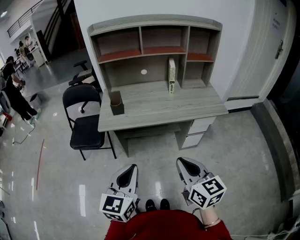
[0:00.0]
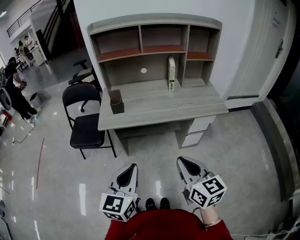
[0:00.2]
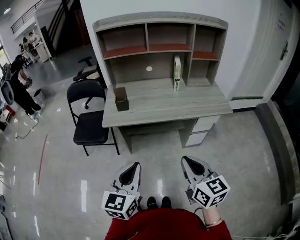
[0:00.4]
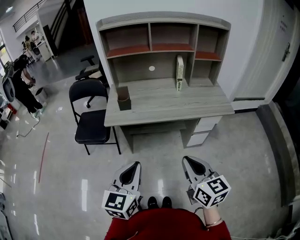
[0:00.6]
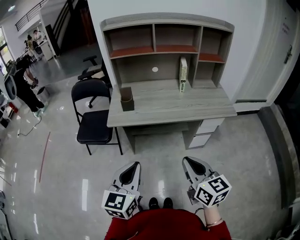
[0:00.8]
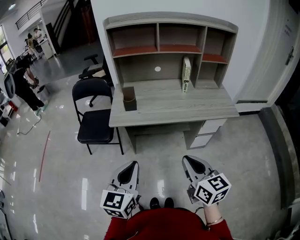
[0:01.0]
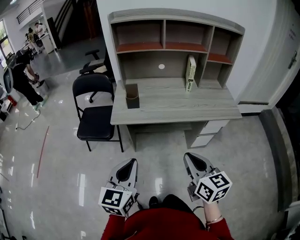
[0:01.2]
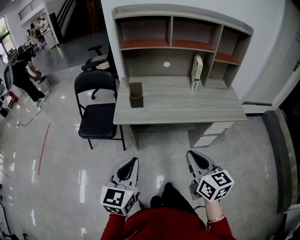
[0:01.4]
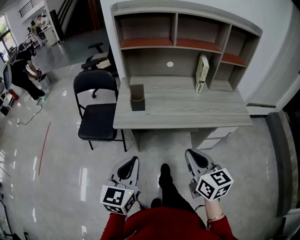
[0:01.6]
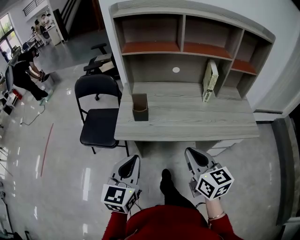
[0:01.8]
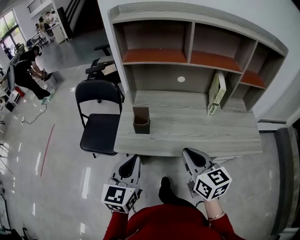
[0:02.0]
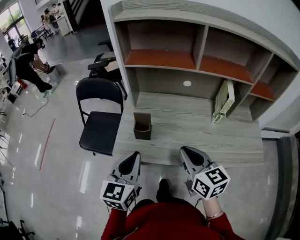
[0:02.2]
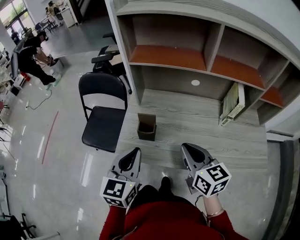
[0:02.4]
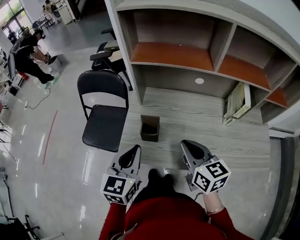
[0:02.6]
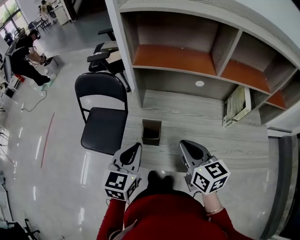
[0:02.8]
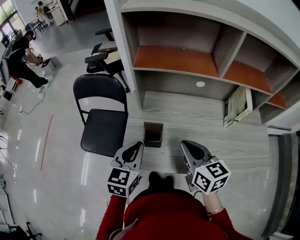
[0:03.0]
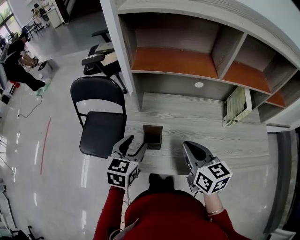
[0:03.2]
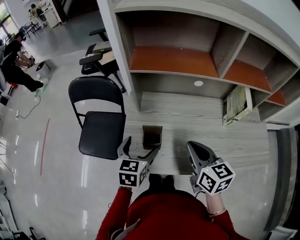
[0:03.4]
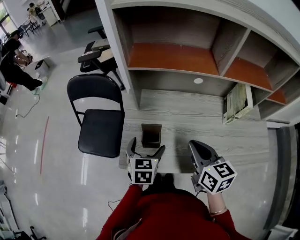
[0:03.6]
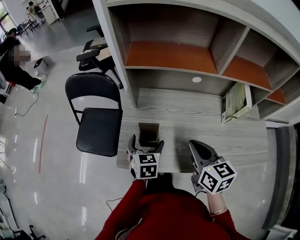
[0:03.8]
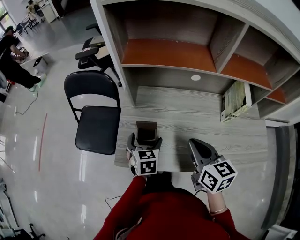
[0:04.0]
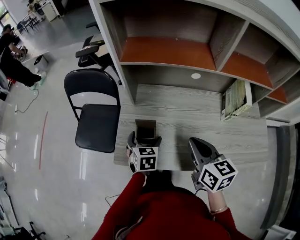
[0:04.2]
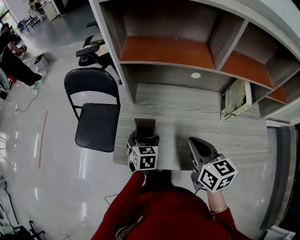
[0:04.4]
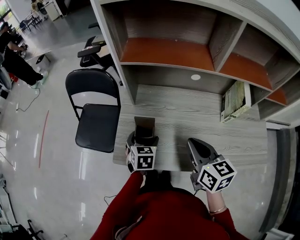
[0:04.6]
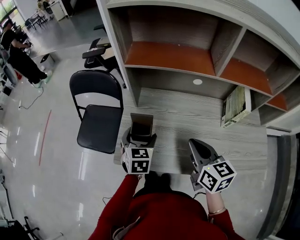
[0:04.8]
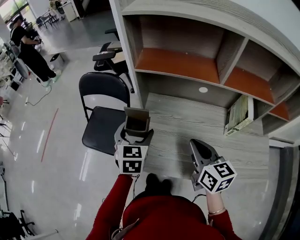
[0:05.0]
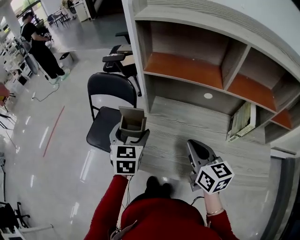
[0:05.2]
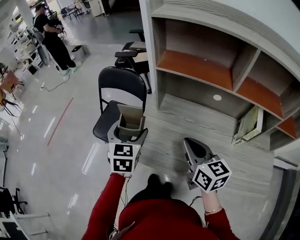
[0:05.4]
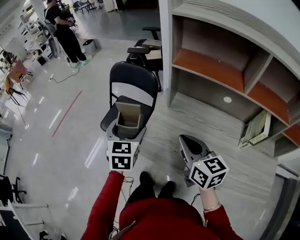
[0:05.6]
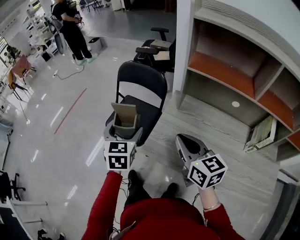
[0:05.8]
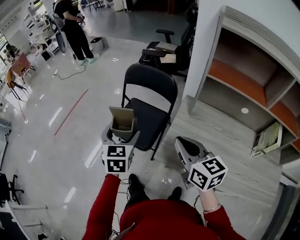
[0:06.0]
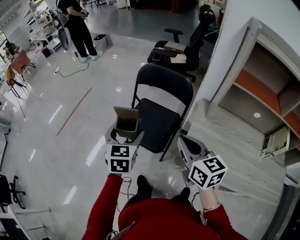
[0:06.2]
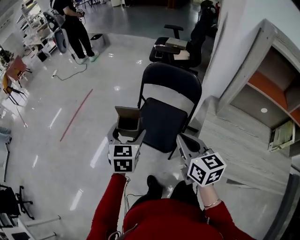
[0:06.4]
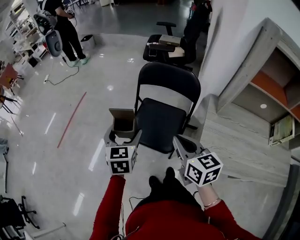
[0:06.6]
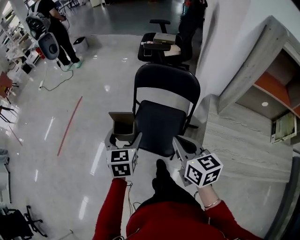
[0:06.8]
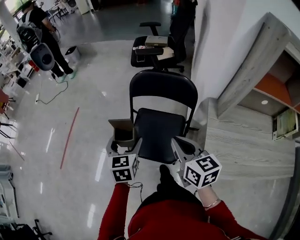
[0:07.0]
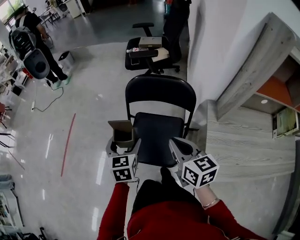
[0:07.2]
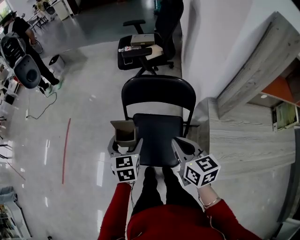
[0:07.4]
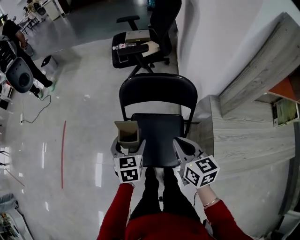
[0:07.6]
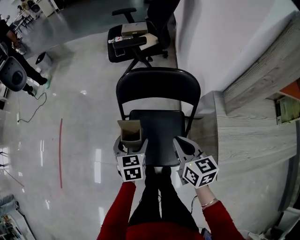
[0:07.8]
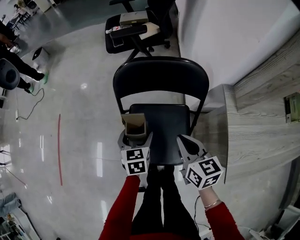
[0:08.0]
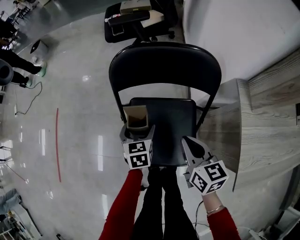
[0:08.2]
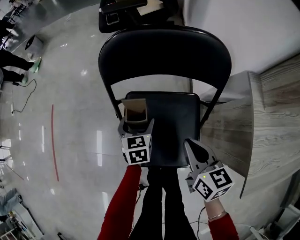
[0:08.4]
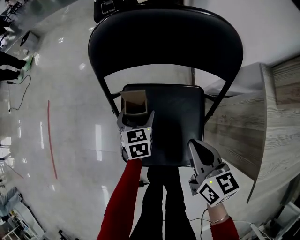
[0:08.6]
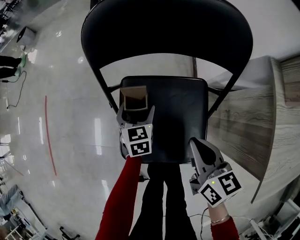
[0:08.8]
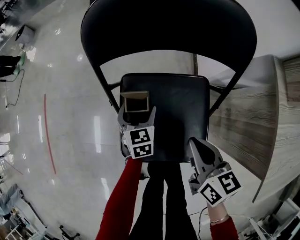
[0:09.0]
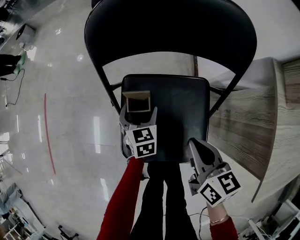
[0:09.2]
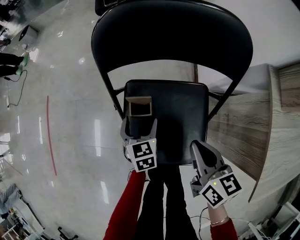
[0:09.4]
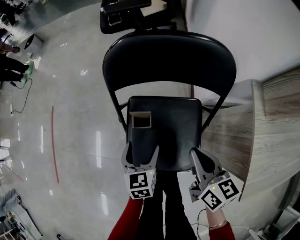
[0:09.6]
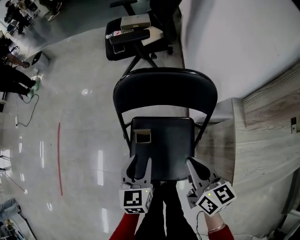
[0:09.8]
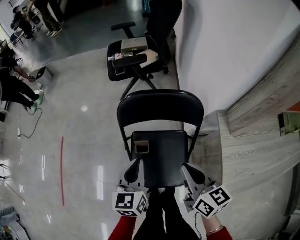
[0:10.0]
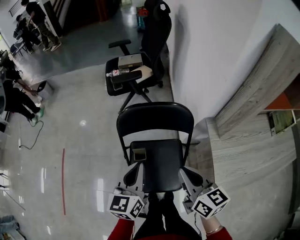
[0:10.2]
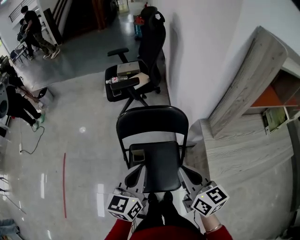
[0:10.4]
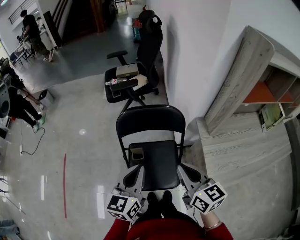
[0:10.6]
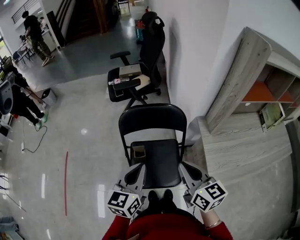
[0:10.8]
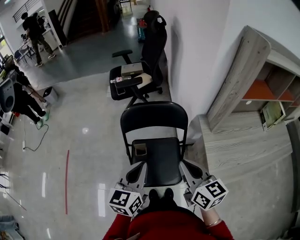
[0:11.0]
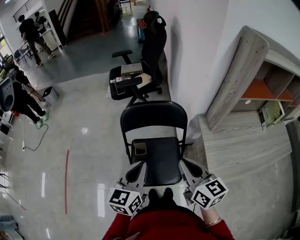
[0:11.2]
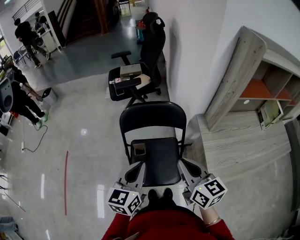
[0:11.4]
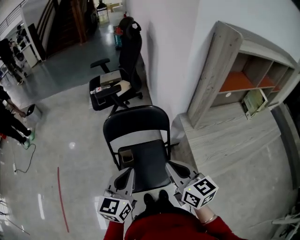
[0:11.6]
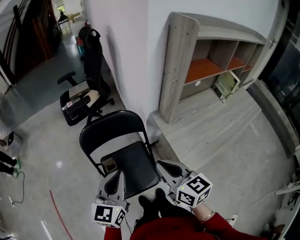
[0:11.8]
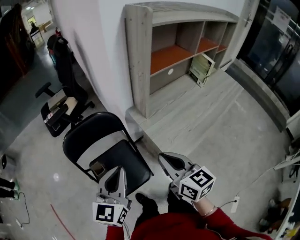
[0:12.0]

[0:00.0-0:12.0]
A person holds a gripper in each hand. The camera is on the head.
0:00.0 to 0:01.6: The two grippers go roughly 15 cm forward and to the left.
0:01.6 to 0:03.0: Both grippers travel together forward, roughly 30 cm.
0:03.0 to 0:04.4: The right gripper ends up approximately 5 cm from where it was; the left gripper goes some 15 cm downward, turns by about 20 degrees, and opens its fingers.
0:04.4 to 0:06.0: The right gripper ends up roughly 25 cm from where it was, and turns by about 30 degrees. Meanwhile the left gripper shifts by approximately 35 cm, and swivels approximately 30 degrees.
0:06.0 to 0:07.6: The left gripper shifts roughly 30 cm forward, downward and to the left, and changes its angle by approximately 20 degrees, while the right gripper heads forward, to the left and downward, covering approximately 30 cm, and swivels roughly 30 degrees.
0:07.6 to 0:09.0: Both grippers move downward, about 25 cm.
0:09.0 to 0:10.4: The two grippers go approximately 35 cm upward. The right gripper turns by approximately 20 degrees; the left gripper turns by some 40 degrees, and closes up.
0:10.4 to 0:12.0: The left gripper moves to the right, roughly 10 cm, and swivels roughly 30 degrees. Meanwhile the right gripper travels to the right and backward by about 15 cm, and turns by some 20 degrees.

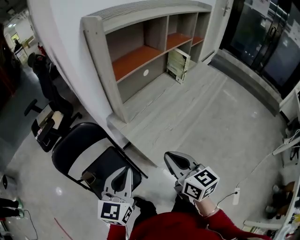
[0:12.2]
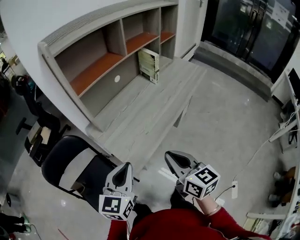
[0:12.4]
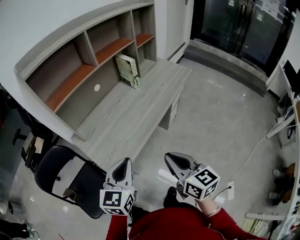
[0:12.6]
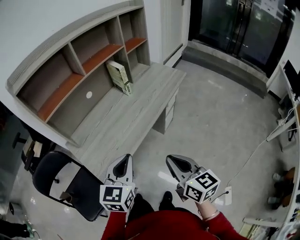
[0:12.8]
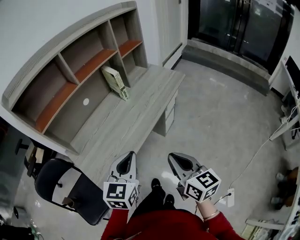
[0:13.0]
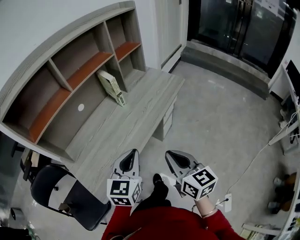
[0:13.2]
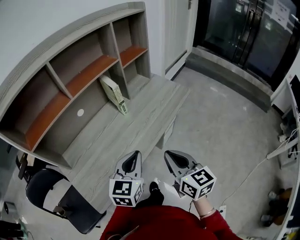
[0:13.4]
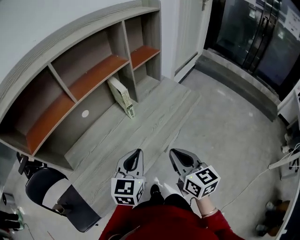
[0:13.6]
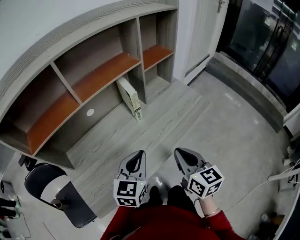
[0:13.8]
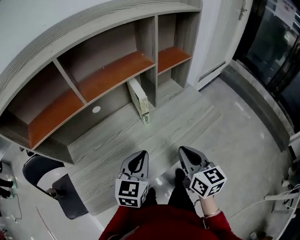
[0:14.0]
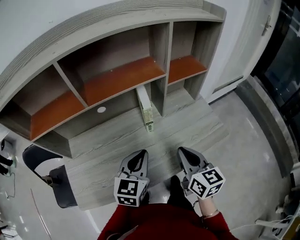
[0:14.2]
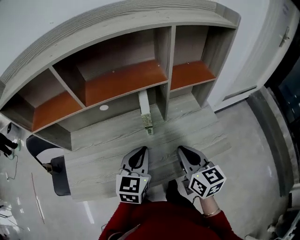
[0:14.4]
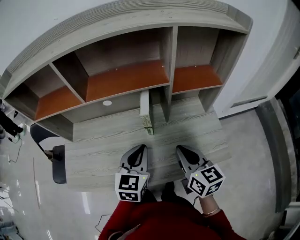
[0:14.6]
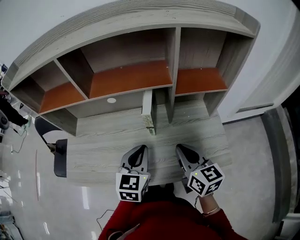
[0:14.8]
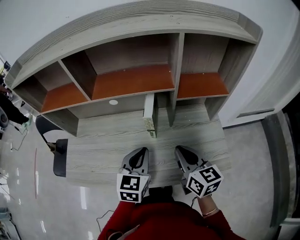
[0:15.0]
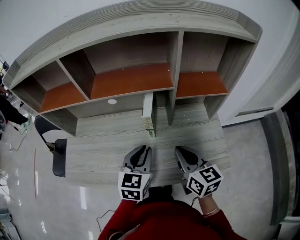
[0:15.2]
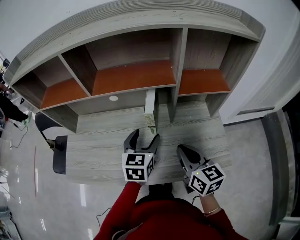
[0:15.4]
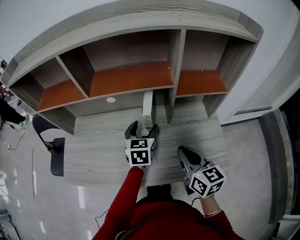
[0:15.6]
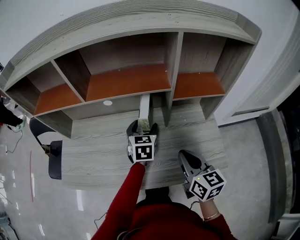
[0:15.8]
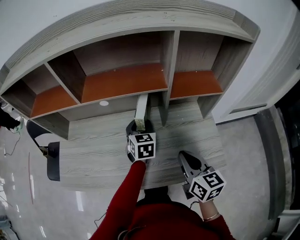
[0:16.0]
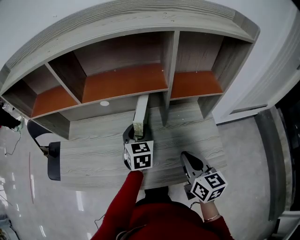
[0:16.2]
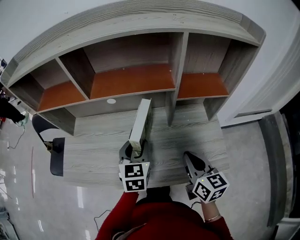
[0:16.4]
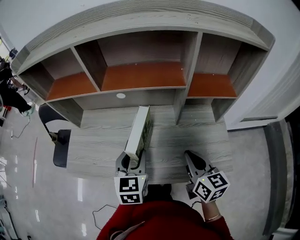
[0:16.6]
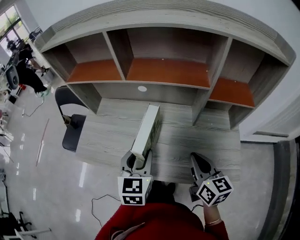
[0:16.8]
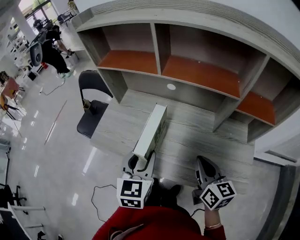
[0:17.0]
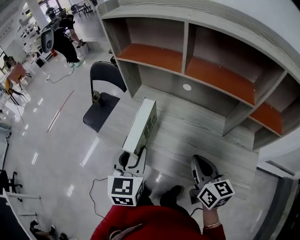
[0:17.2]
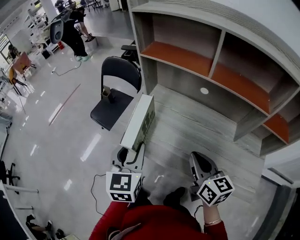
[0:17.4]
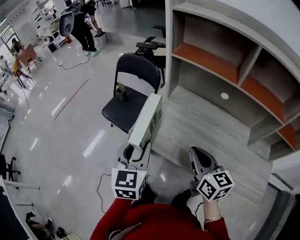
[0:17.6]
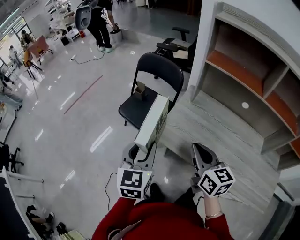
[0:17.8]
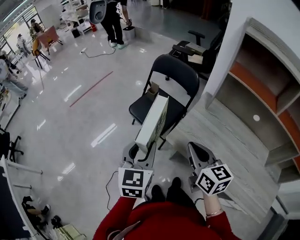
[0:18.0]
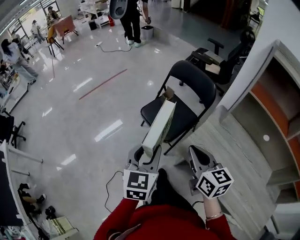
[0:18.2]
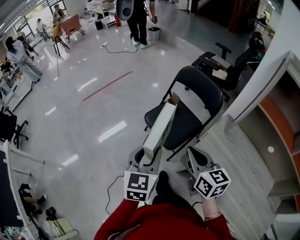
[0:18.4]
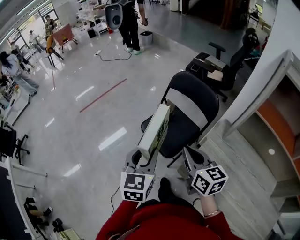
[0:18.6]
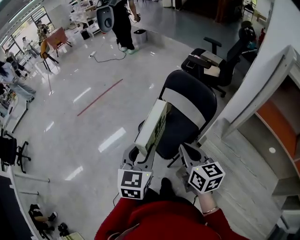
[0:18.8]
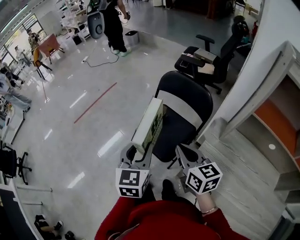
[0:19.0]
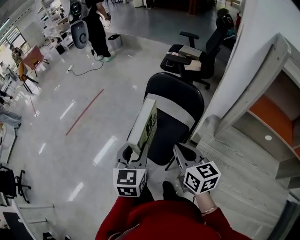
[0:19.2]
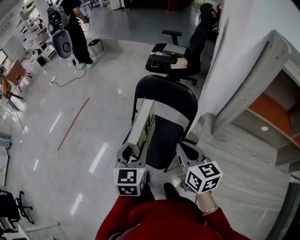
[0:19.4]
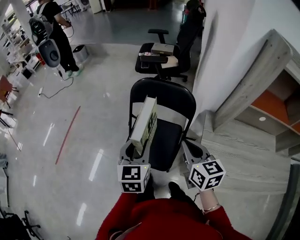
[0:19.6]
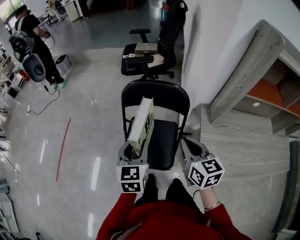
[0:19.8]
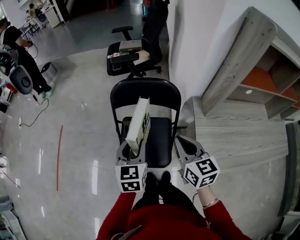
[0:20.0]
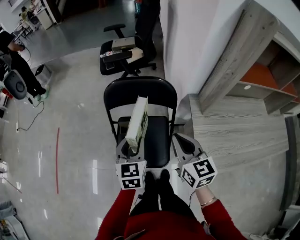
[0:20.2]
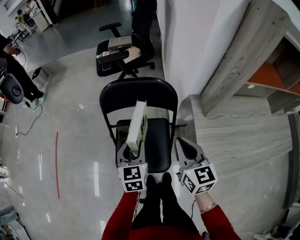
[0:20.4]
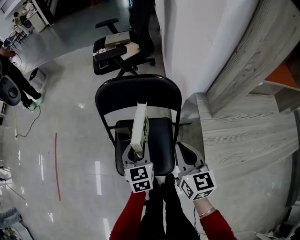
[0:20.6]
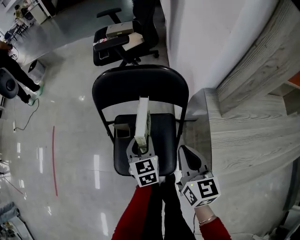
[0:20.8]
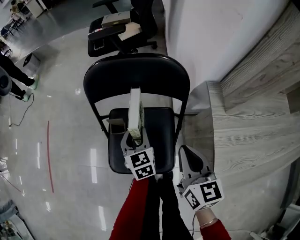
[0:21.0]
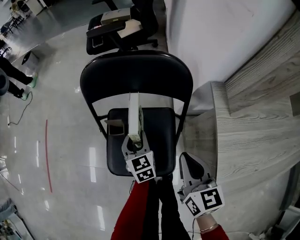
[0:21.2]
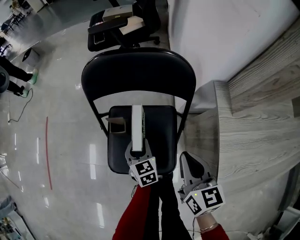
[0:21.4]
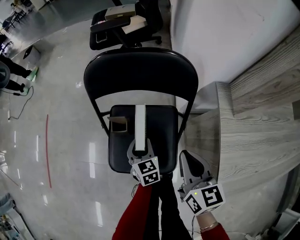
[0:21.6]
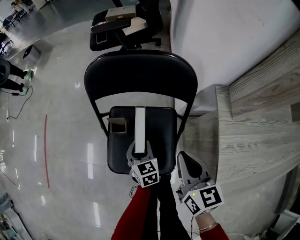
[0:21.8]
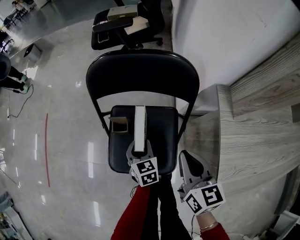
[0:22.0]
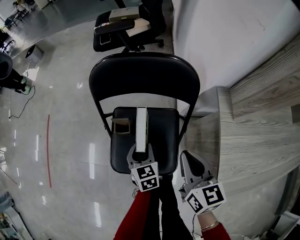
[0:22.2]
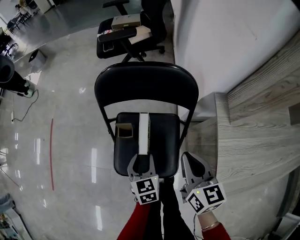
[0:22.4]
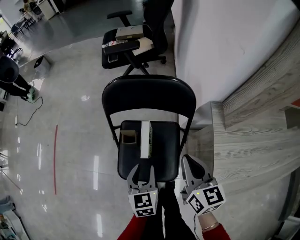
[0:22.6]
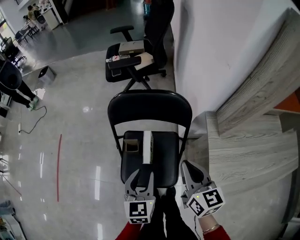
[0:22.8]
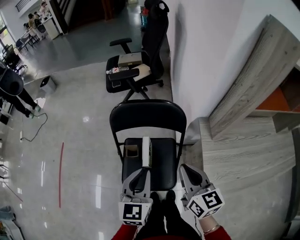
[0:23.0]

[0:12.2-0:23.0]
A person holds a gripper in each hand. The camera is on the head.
0:12.2 to 0:13.8: The pair of grippers is taken to the right and forward, approximately 50 cm.
0:13.8 to 0:15.2: The left gripper moves about 15 cm, and swivels approximately 40 degrees, while the right gripper changes place by approximately 20 cm, and swivels approximately 40 degrees.
0:15.2 to 0:16.8: The left gripper travels to the left by some 10 cm, and goes forward and returns, about 15 cm each way.
0:16.8 to 0:18.4: The pair of grippers is taken approximately 60 cm. The left gripper turns by approximately 40 degrees. Meanwhile the right gripper rotates some 50 degrees.
0:18.4 to 0:20.0: The right gripper changes place by some 20 cm, and changes its angle by approximately 50 degrees. The left gripper ends up approximately 30 cm from where it was, and turns by roughly 40 degrees.
0:20.0 to 0:21.4: The left gripper heads downward, covering about 30 cm. Meanwhile the right gripper travels downward by approximately 15 cm.
0:21.4 to 0:23.0: The right gripper shifts about 15 cm upward; the left gripper moves upward, approximately 30 cm, and changes its angle by approximately 30 degrees.

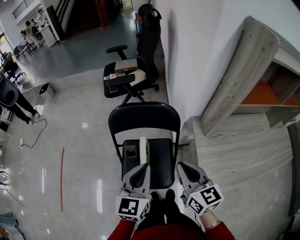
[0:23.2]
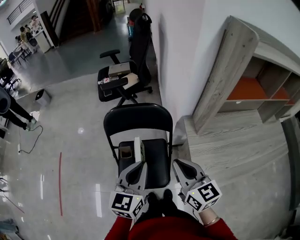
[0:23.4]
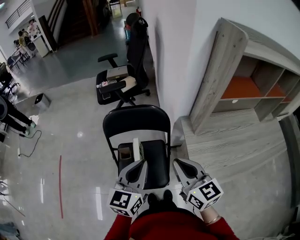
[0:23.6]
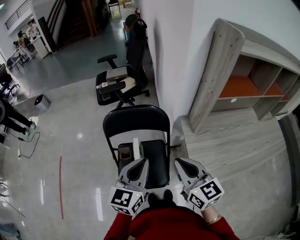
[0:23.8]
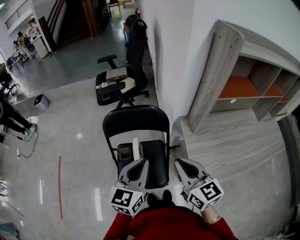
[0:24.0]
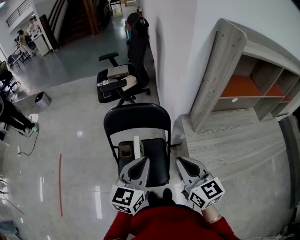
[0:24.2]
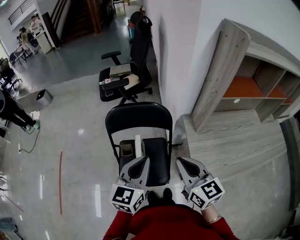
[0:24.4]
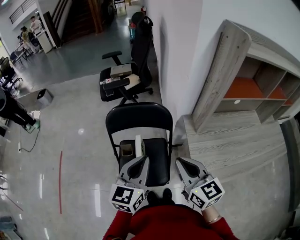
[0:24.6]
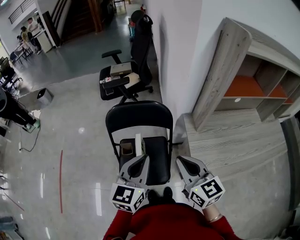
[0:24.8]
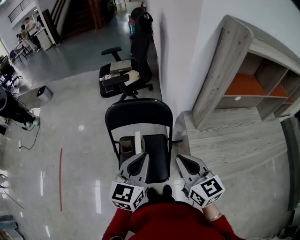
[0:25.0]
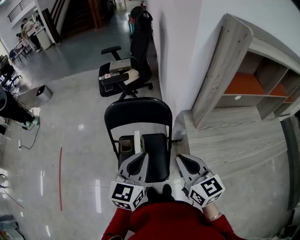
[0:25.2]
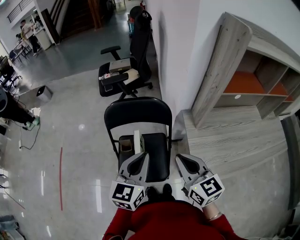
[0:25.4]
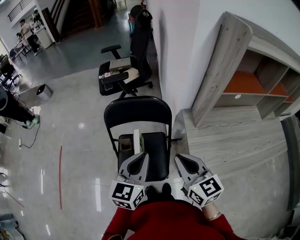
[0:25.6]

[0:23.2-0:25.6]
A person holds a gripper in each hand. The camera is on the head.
0:23.2 to 0:24.4: The right gripper changes place by approximately 5 cm.
0:24.4 to 0:25.6: Both grippers stay put.
